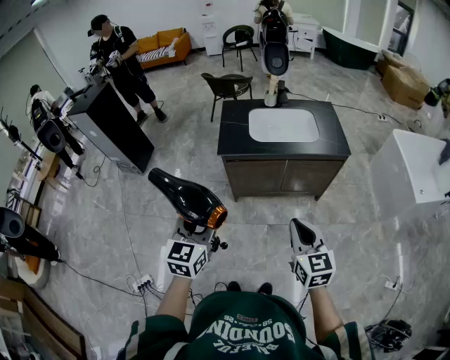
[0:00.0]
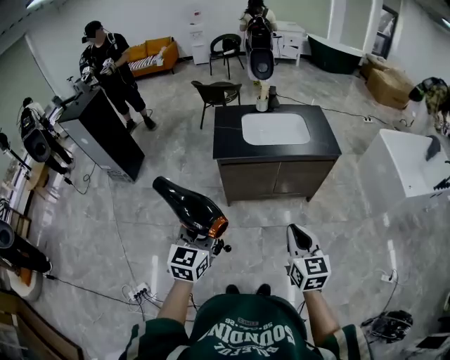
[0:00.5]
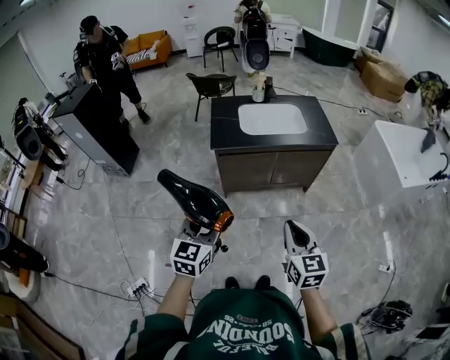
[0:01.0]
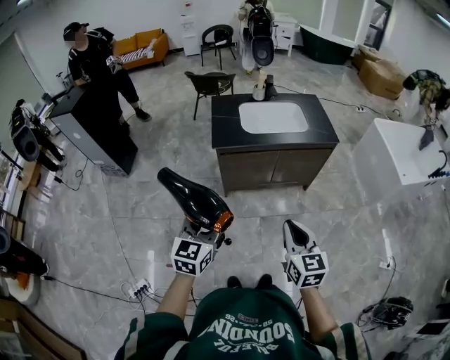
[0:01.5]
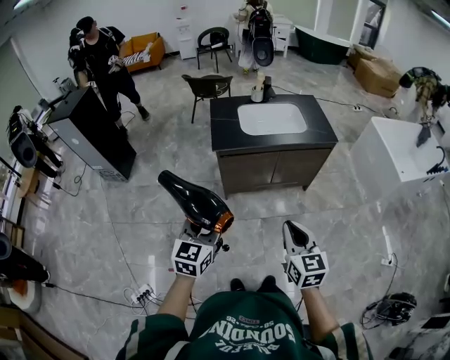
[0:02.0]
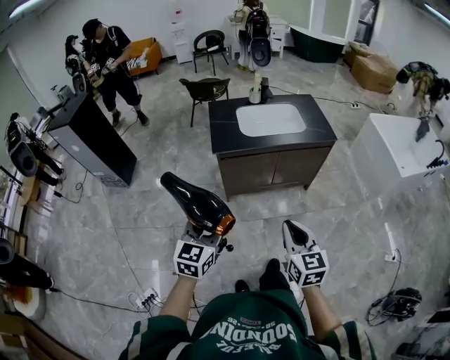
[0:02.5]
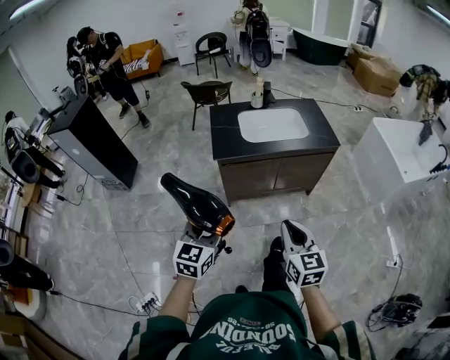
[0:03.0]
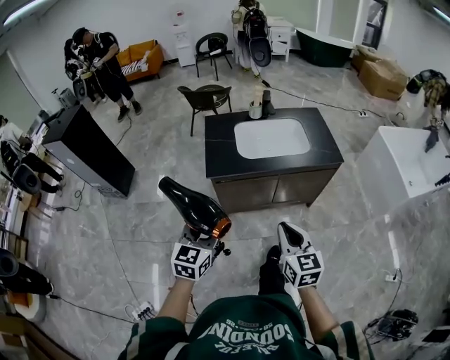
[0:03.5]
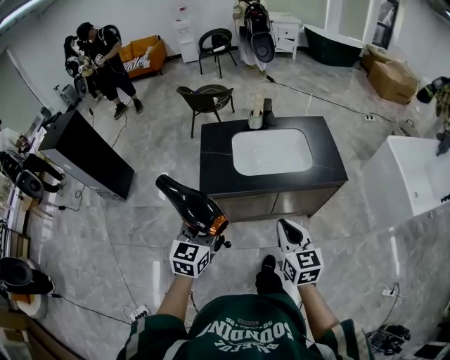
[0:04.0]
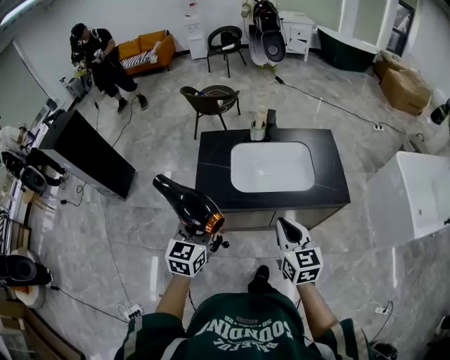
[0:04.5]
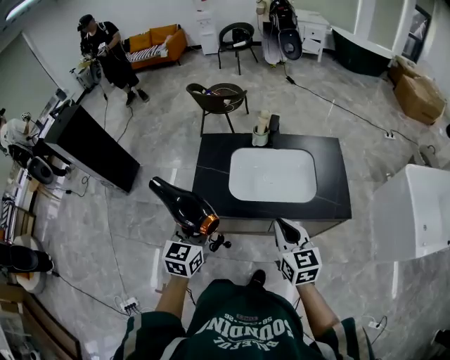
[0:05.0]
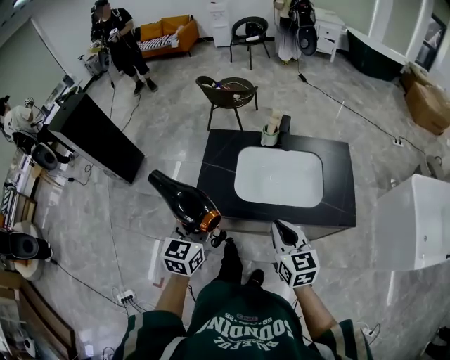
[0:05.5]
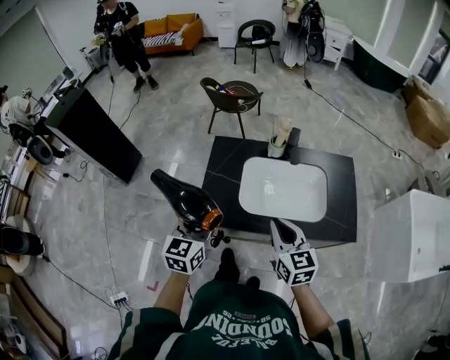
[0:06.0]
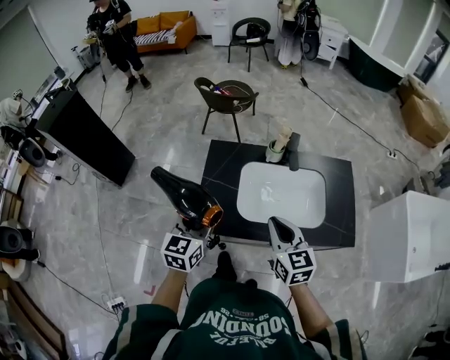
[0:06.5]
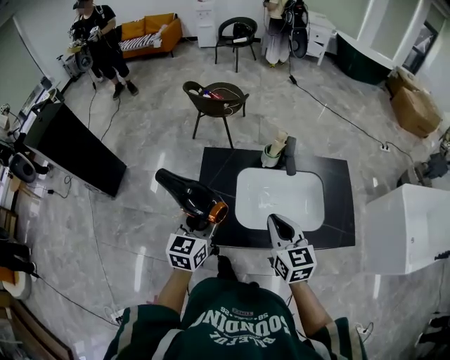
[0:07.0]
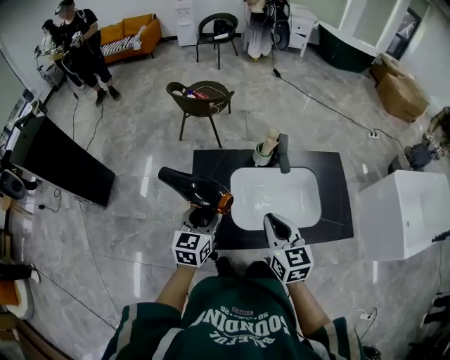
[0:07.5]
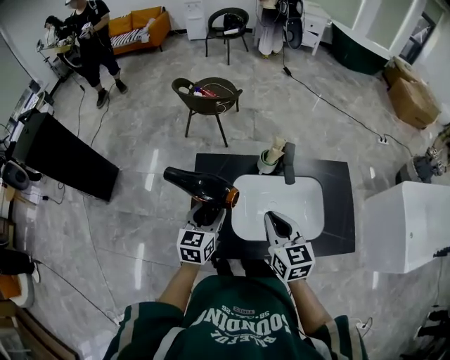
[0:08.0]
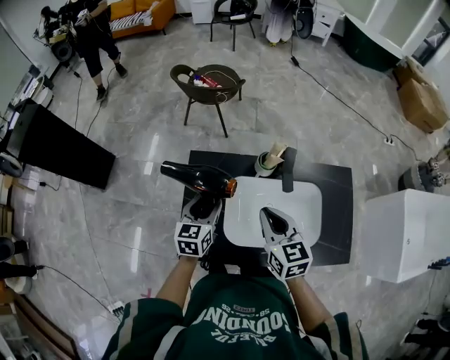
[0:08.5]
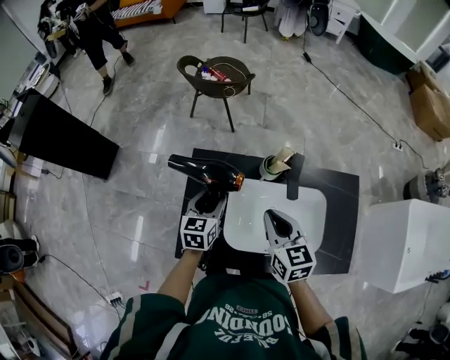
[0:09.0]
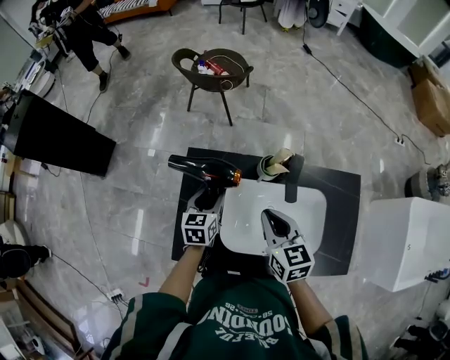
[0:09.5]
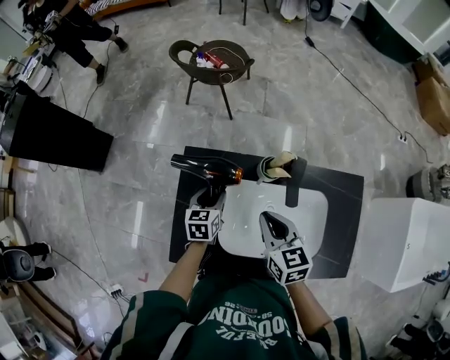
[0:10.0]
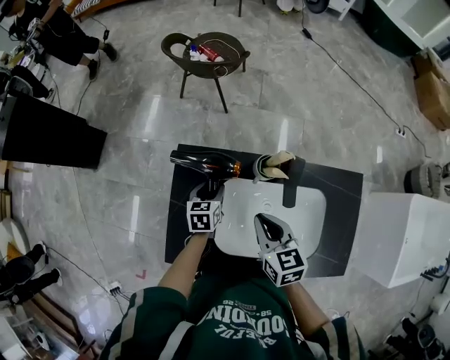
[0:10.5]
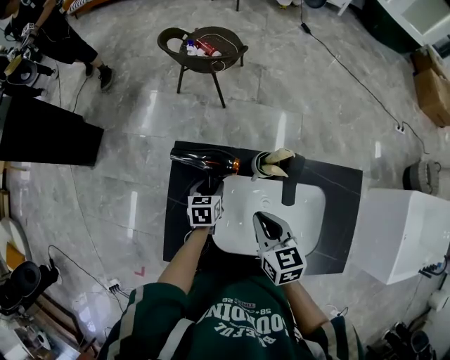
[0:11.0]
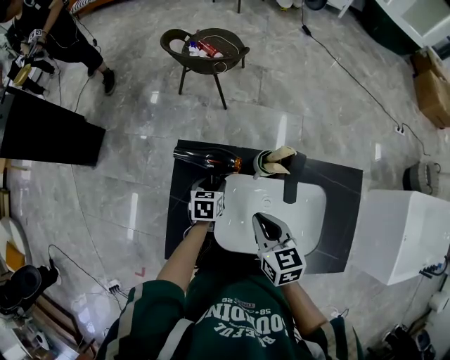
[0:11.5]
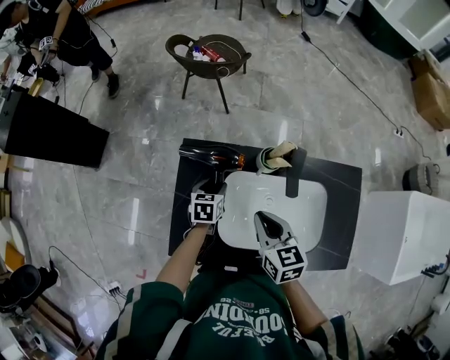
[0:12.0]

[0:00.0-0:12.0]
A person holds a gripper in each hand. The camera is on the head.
0:00.0 to 0:02.0: The right gripper moves backward and to the left, roughly 10 cm, while the left gripper heads backward, covering approximately 5 cm.
0:02.0 to 0:04.0: Both grippers move forward, approximately 30 cm.
0:04.0 to 0:06.0: The grippers both shift forward by some 25 cm.
0:06.0 to 0:08.0: The left gripper is displaced forward and downward by some 20 cm. The right gripper goes some 15 cm forward.
0:08.0 to 0:10.0: The left gripper heads downward and forward, covering roughly 20 cm, and swivels about 20 degrees. Meanwhile the right gripper travels forward and downward by some 15 cm.

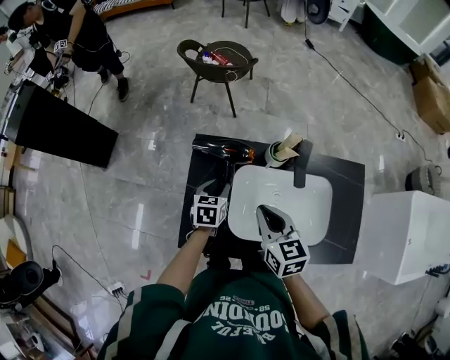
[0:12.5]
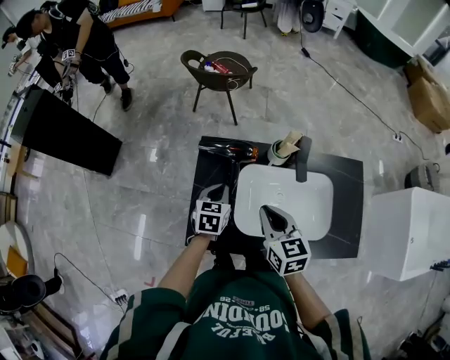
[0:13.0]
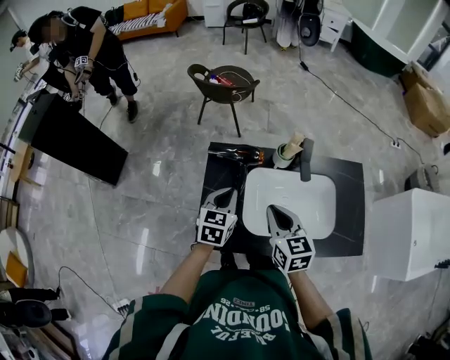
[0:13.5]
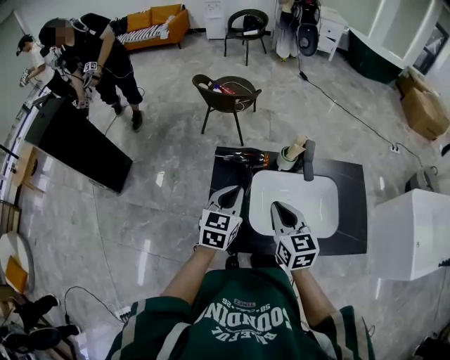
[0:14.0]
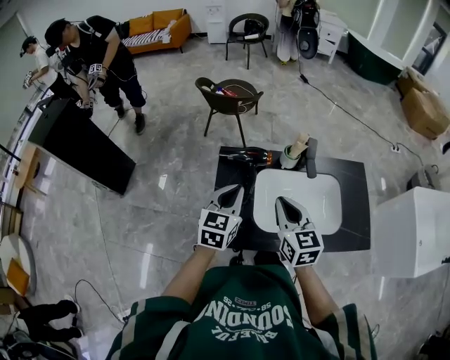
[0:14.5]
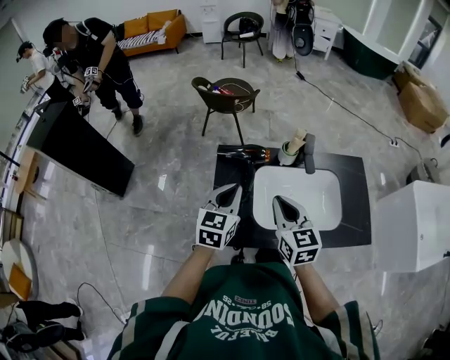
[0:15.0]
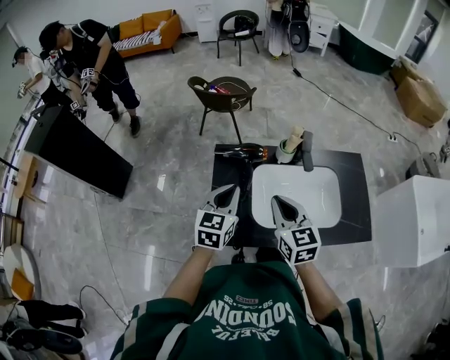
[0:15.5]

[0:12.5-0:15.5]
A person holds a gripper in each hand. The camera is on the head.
0:12.5 to 0:14.0: The right gripper is displaced backward and upward by roughly 10 cm. The left gripper heads upward and backward, covering some 20 cm, rotates some 30 degrees, and closes.
0:14.0 to 0:15.5: The grippers move only a little.

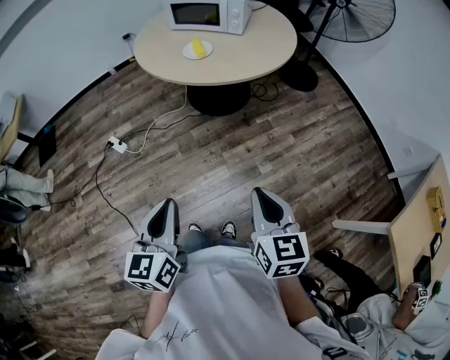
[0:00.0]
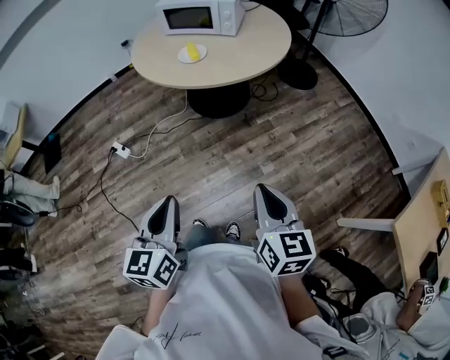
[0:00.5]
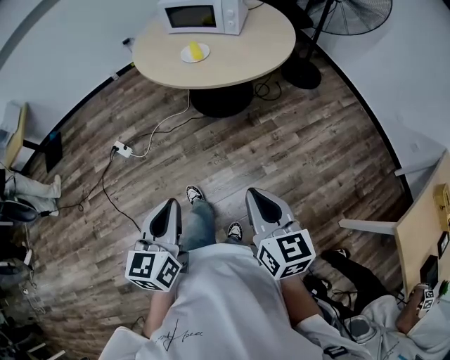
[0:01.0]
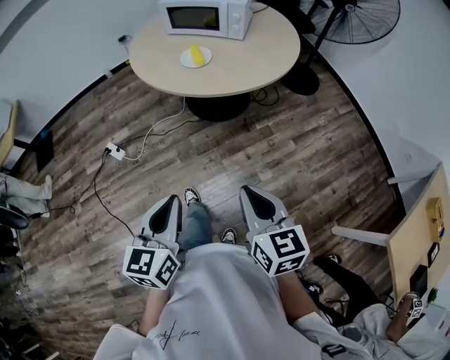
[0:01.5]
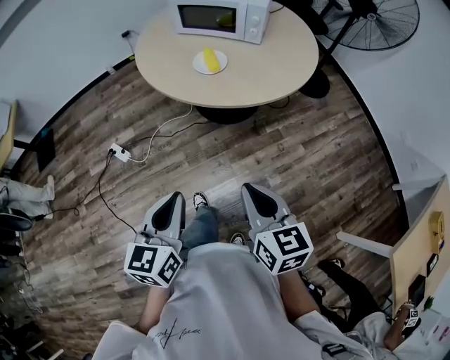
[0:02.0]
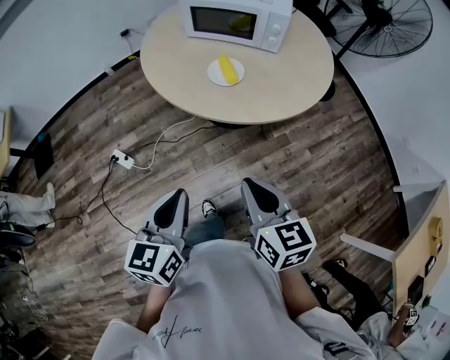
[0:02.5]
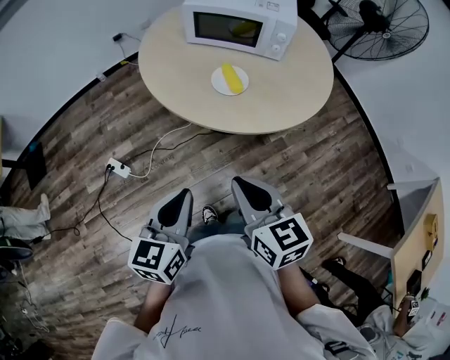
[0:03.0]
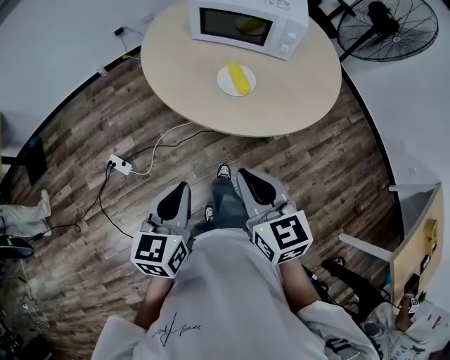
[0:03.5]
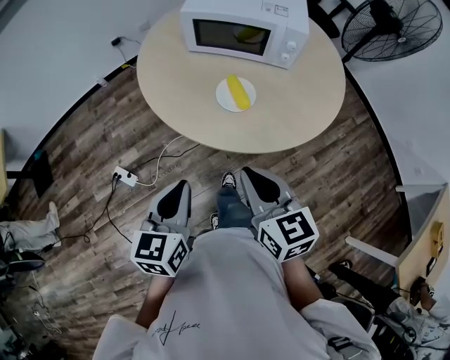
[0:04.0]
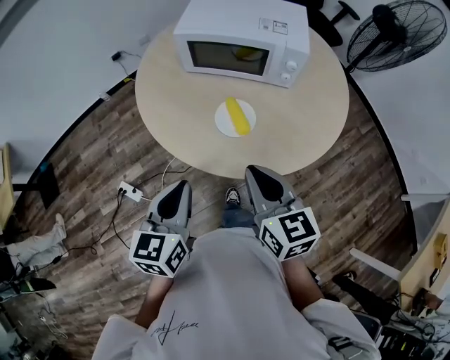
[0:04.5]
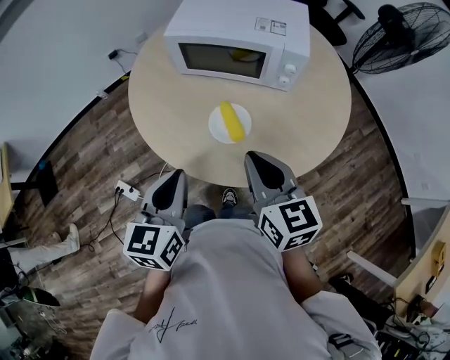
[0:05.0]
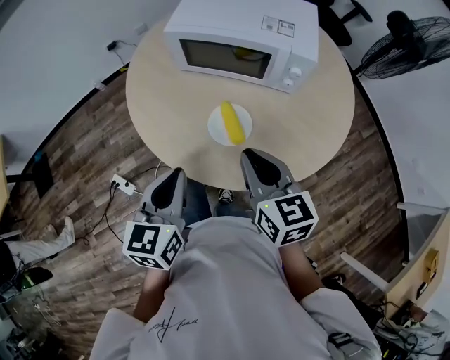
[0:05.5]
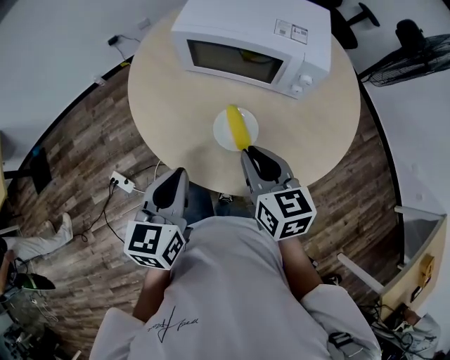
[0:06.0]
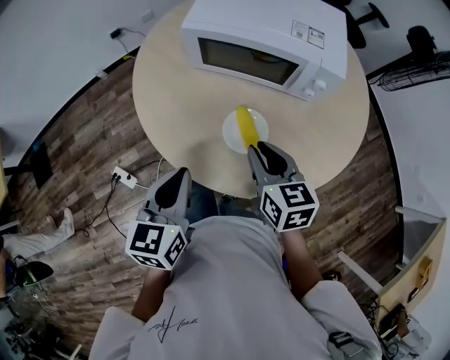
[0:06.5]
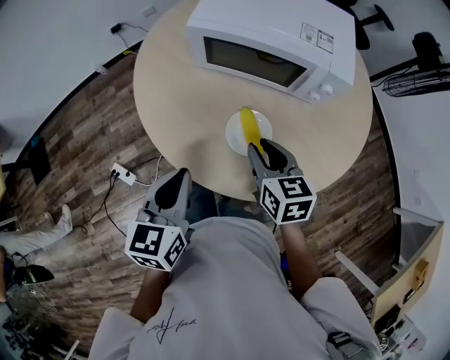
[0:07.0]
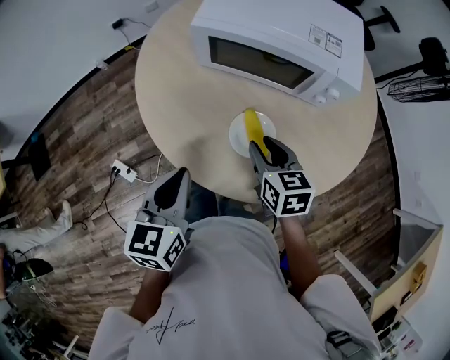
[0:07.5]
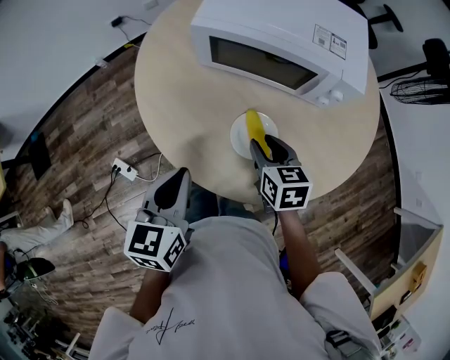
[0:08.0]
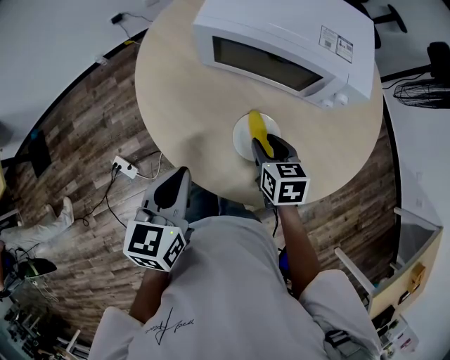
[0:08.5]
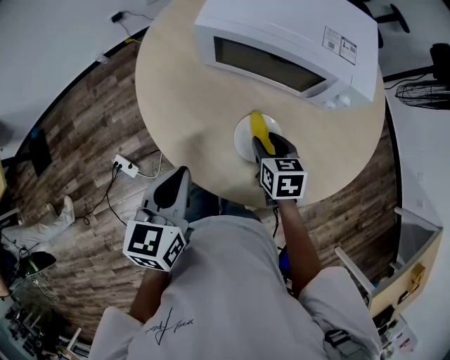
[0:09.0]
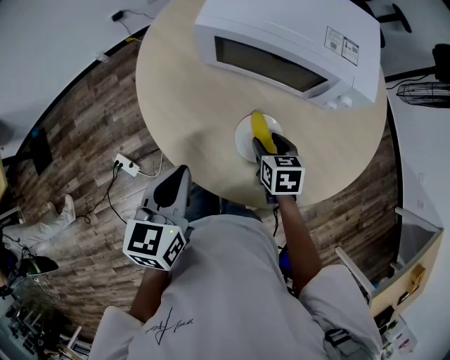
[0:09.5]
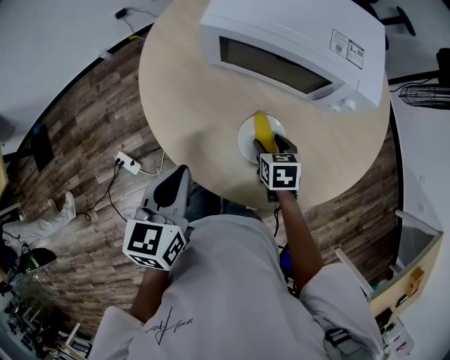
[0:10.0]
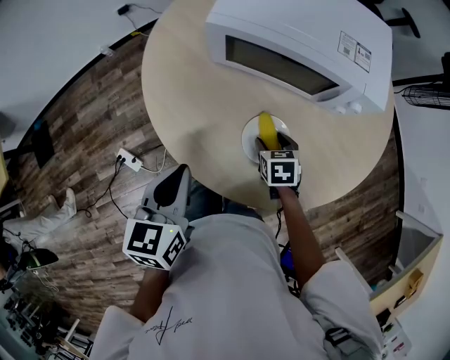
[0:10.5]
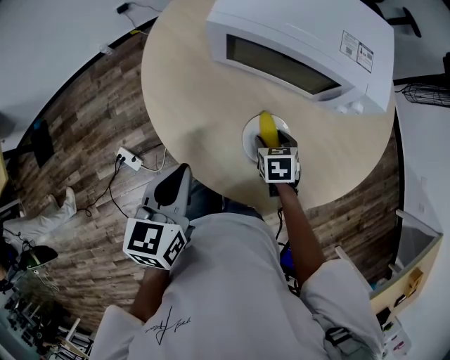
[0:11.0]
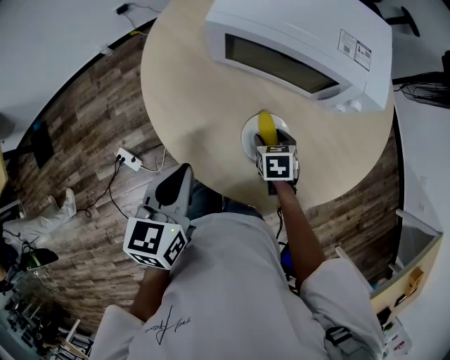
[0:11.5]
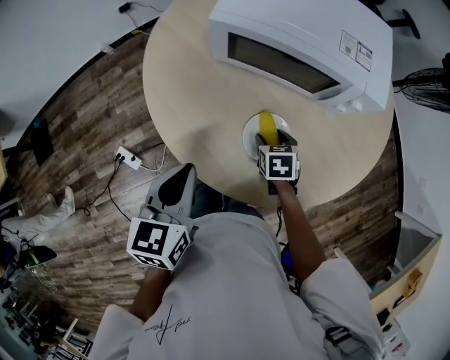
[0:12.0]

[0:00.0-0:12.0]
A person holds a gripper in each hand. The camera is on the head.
0:00.0 to 0:02.0: The left gripper moves forward, about 20 cm; the right gripper shifts about 20 cm forward and to the left.
0:02.0 to 0:04.0: The two grippers go roughly 30 cm forward and to the left.
0:04.0 to 0:06.0: The two grippers go roughly 20 cm forward.
0:06.0 to 0:08.0: The right gripper is displaced downward and forward by approximately 15 cm, and opens, while the left gripper shifts approximately 5 cm forward.
0:08.0 to 0:10.0: The right gripper heads downward, covering some 10 cm, and opens up.
0:10.0 to 0:12.0: The grippers make only small movements.
